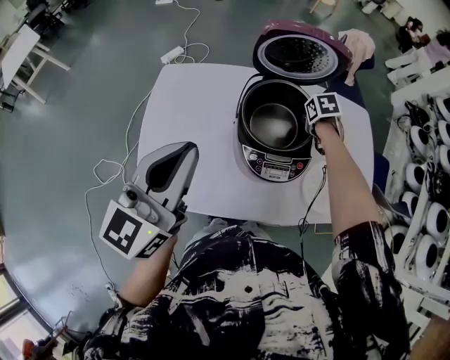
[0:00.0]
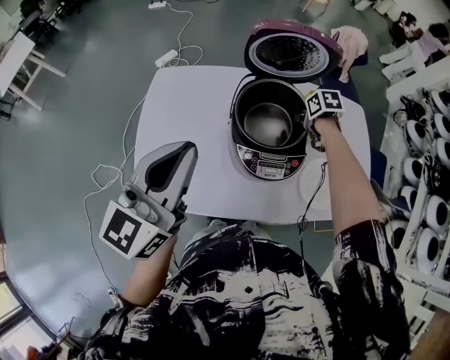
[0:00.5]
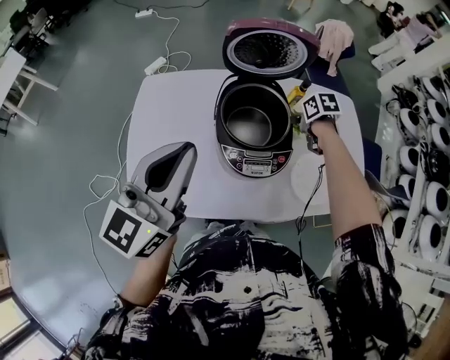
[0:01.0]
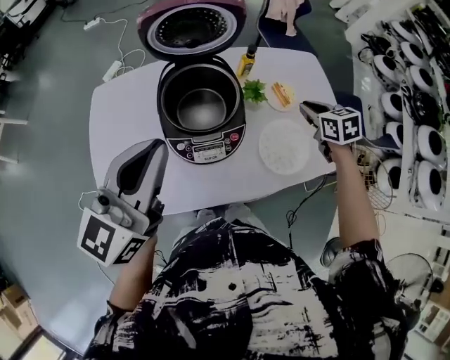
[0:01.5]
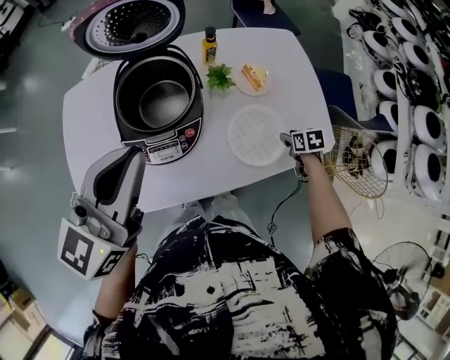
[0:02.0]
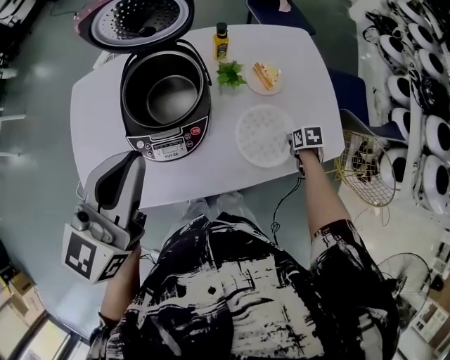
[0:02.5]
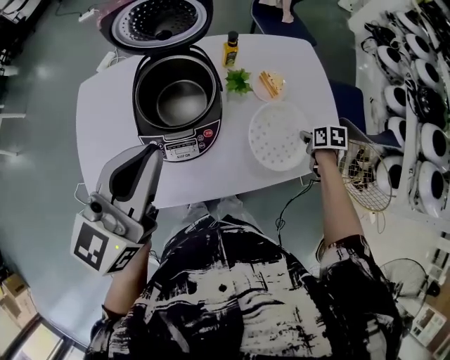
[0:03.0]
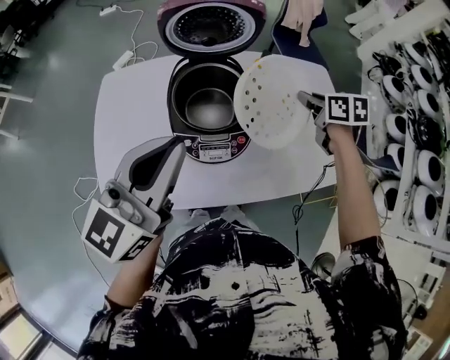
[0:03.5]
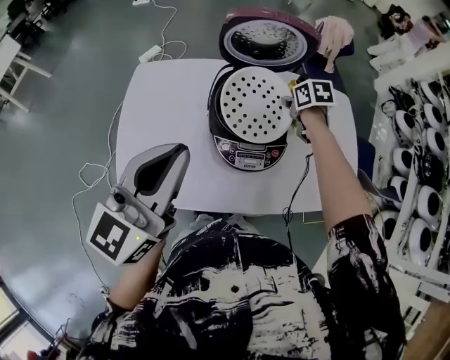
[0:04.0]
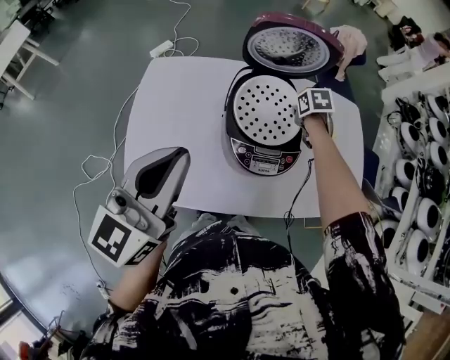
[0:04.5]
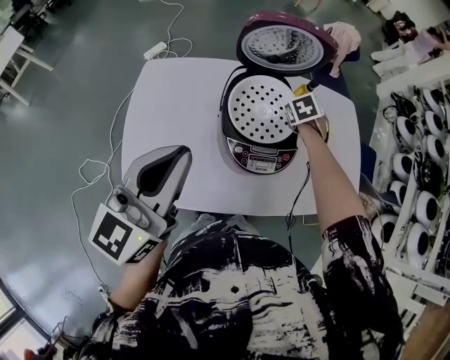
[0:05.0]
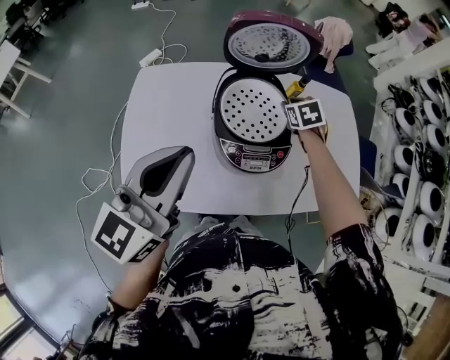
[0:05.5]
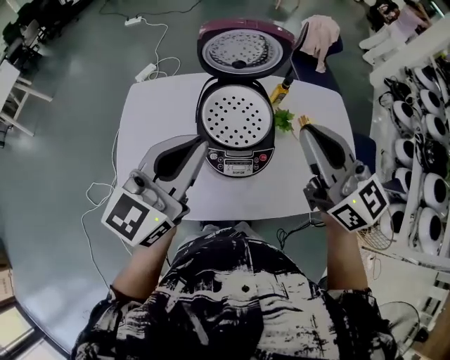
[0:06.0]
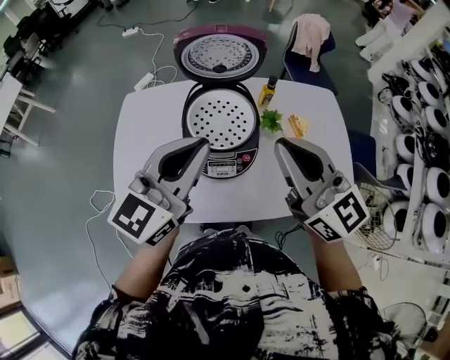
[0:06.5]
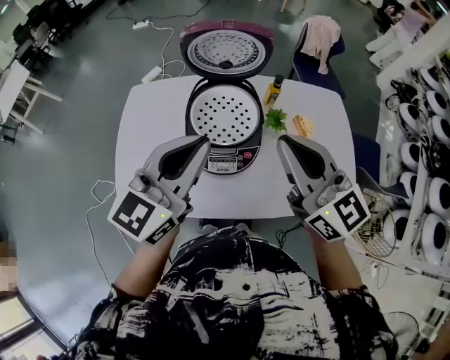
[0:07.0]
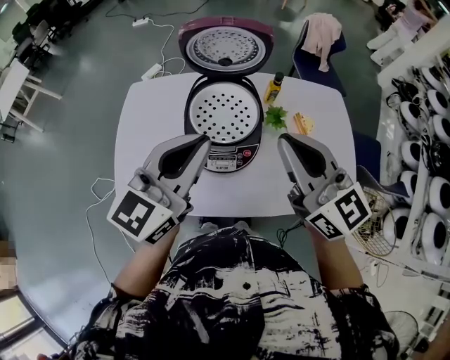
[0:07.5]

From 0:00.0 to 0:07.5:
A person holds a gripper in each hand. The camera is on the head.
From 0:00.0 to 0:02.0: The left gripper moves about 25 cm, and changes its angle by some 20 degrees. The right gripper shifts by approximately 40 cm, and turns by approximately 20 degrees.
From 0:02.0 to 0:04.0: The right gripper moves to the left, forward and upward, roughly 40 cm. Meanwhile the left gripper heads to the left, covering some 20 cm.
From 0:04.0 to 0:05.5: The right gripper swivels roughly 20 degrees.
From 0:05.5 to 0:07.5: The left gripper travels to the right by some 15 cm; the right gripper goes about 35 cm upward and backward, and tips its fingers upward by approximately 60 degrees.

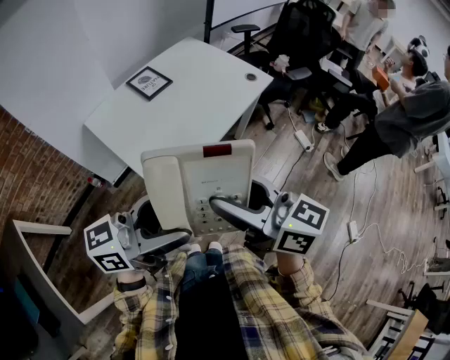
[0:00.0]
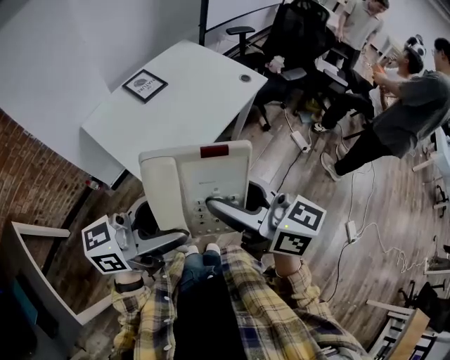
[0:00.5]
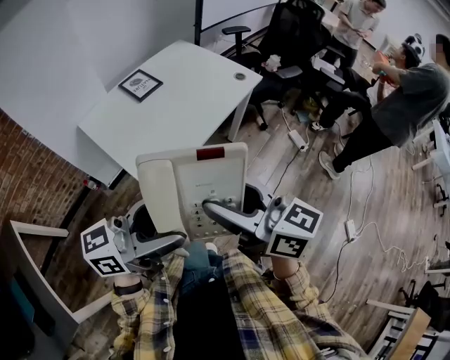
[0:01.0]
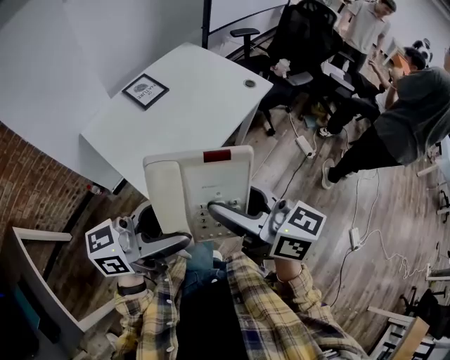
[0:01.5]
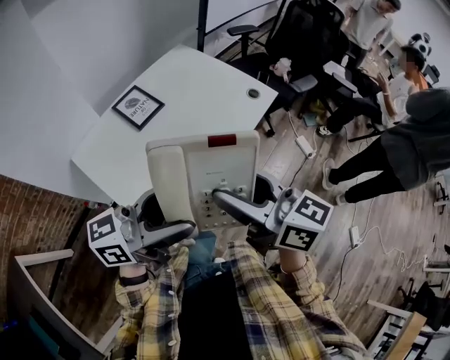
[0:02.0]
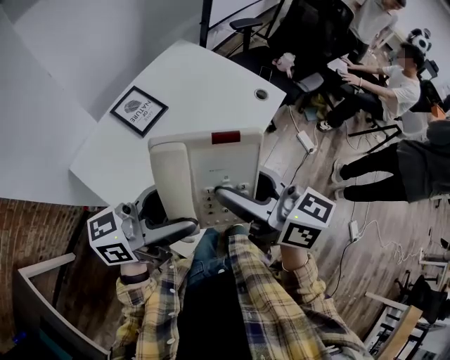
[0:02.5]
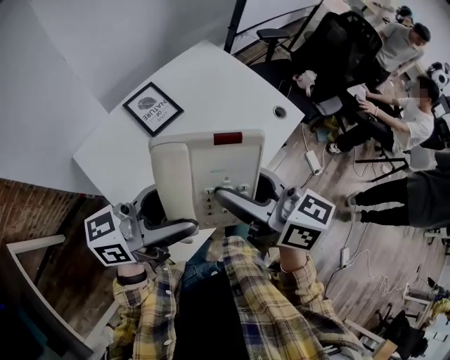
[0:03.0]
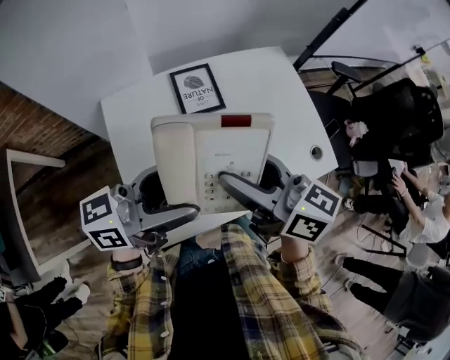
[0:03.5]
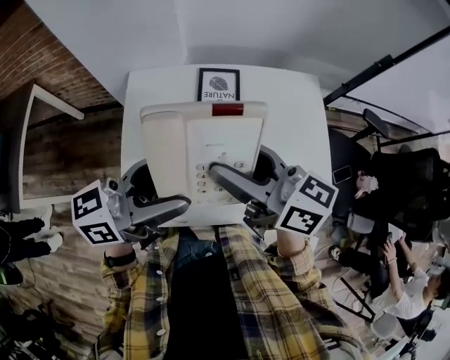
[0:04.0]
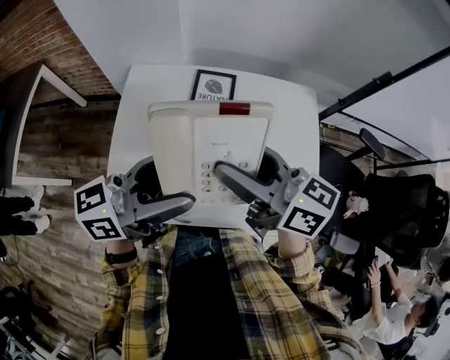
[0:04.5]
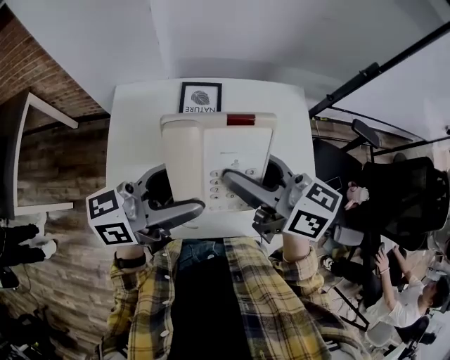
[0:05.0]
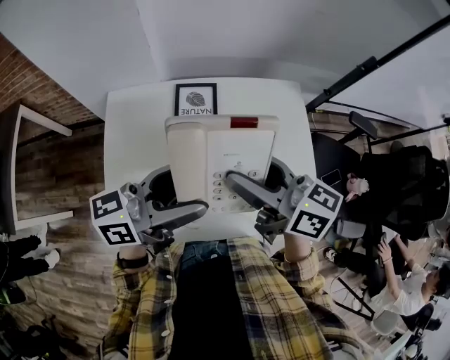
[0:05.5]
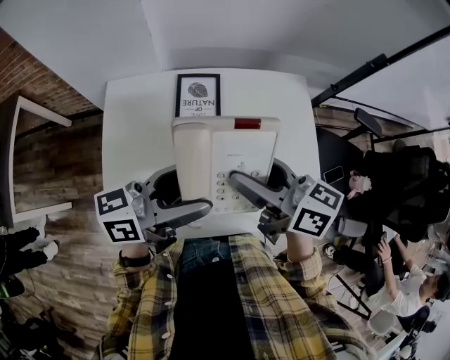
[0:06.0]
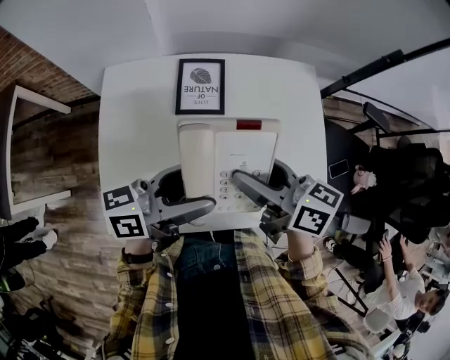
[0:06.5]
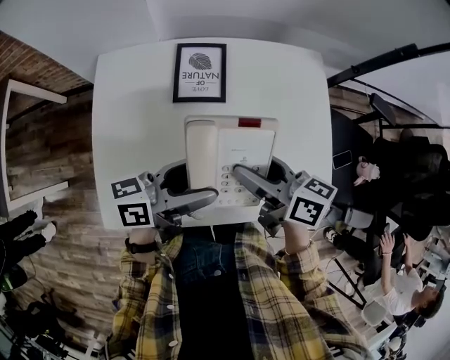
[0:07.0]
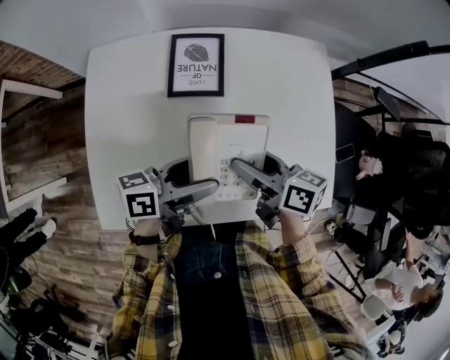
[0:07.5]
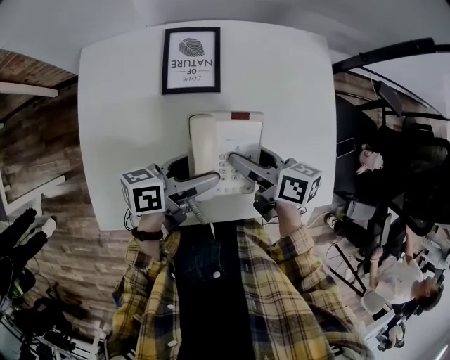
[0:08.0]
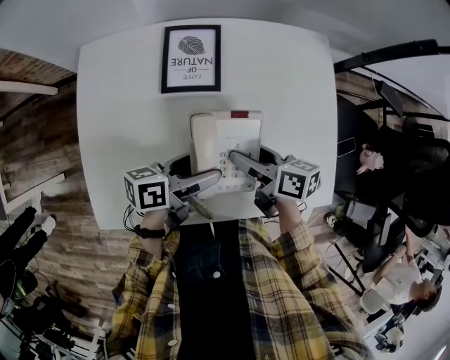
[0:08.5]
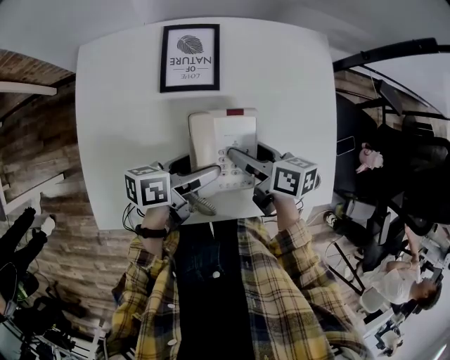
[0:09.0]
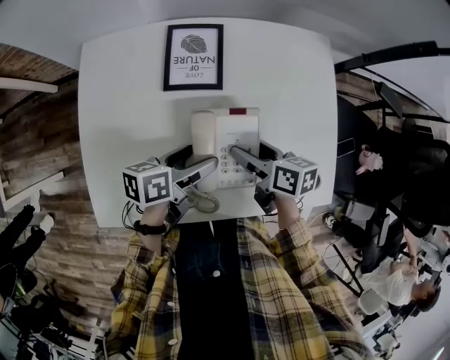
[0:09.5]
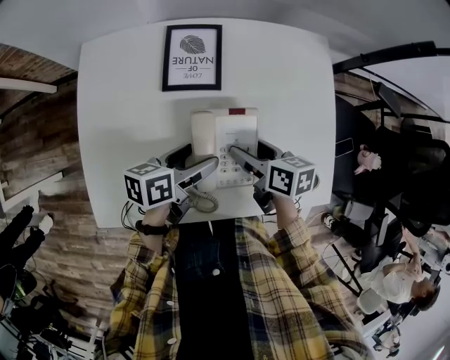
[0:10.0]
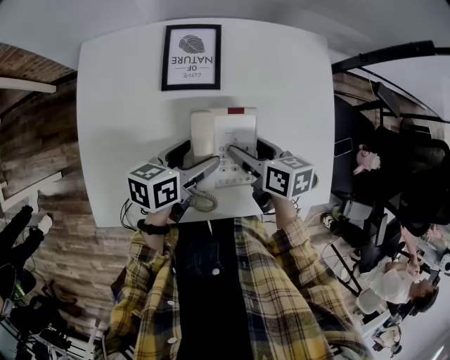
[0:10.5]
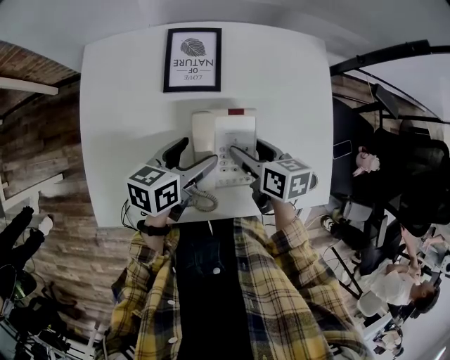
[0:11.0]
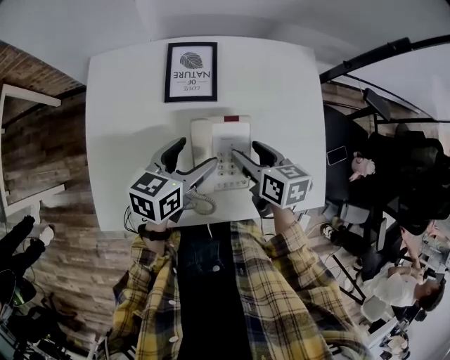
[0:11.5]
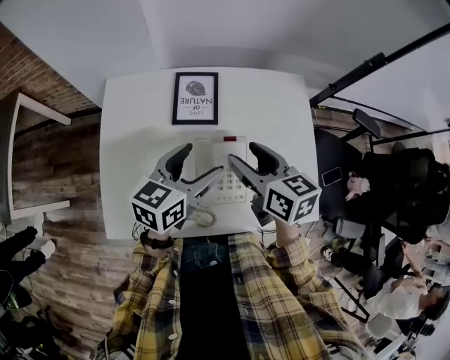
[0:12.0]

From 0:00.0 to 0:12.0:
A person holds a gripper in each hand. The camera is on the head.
From 0:00.0 to 0:02.0: The grippers both shift forward by about 20 cm.
From 0:02.0 to 0:04.0: The right gripper changes place by about 15 cm, and turns by about 60 degrees, while the left gripper shifts by approximately 10 cm, and swivels some 50 degrees.
From 0:04.0 to 0:06.0: Both grippers travel together to the right and downward, approximately 10 cm.
From 0:06.0 to 0:08.0: The grippers both shift downward by some 20 cm. The left gripper swivels roughly 30 degrees. Meanwhile the right gripper rotates some 20 degrees.
From 0:08.0 to 0:10.0: The grippers stay close to where they were, moving slightly.
From 0:10.0 to 0:12.0: The two grippers go about 15 cm upward. The right gripper changes its angle by roughly 30 degrees; the left gripper turns by about 40 degrees.

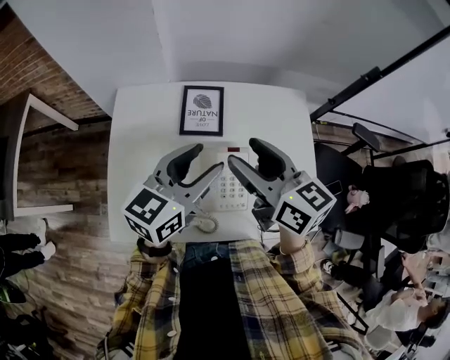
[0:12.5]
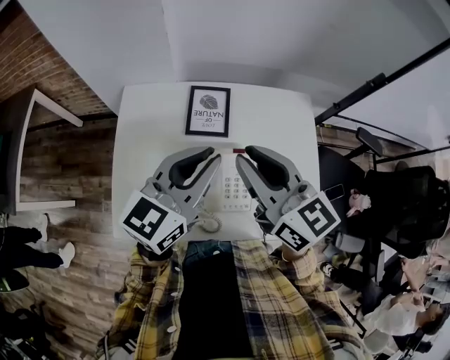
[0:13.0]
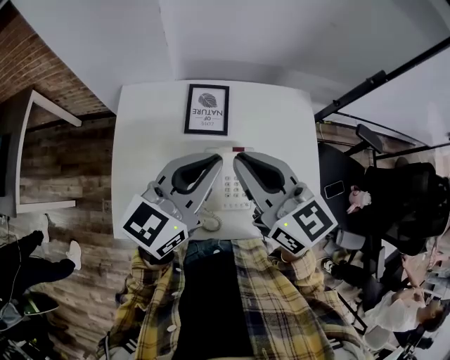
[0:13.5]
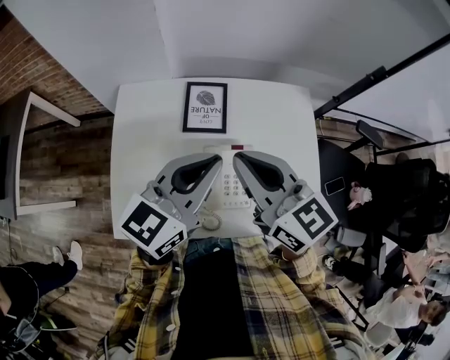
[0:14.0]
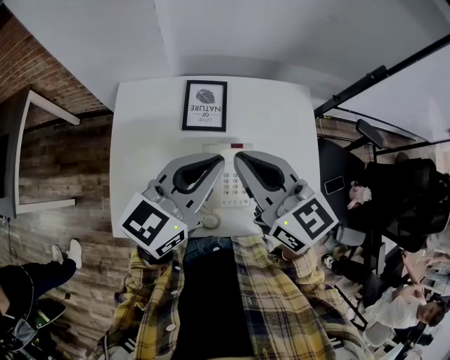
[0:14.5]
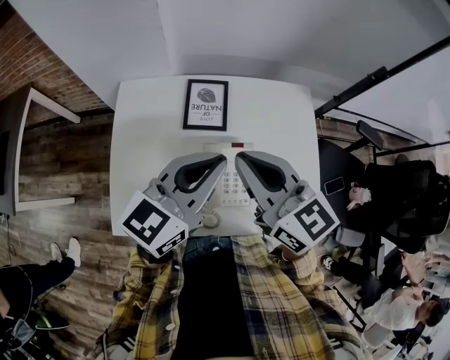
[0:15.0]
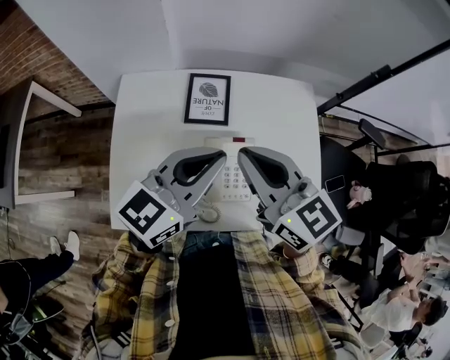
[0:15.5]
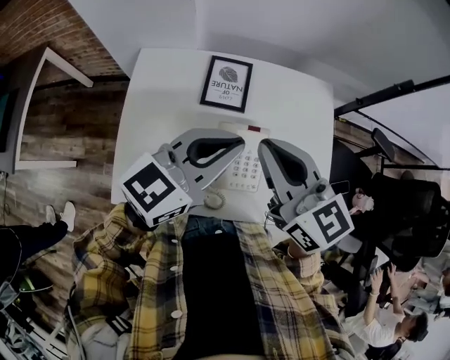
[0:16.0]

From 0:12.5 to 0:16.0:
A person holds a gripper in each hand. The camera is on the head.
From 0:12.5 to 0:14.5: The right gripper closes its fingers, while the left gripper closes up.
From 0:14.5 to 0:16.0: The grippers move only a little.

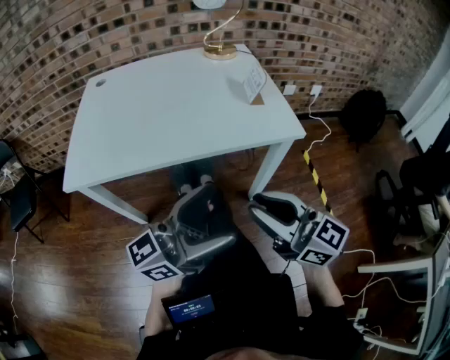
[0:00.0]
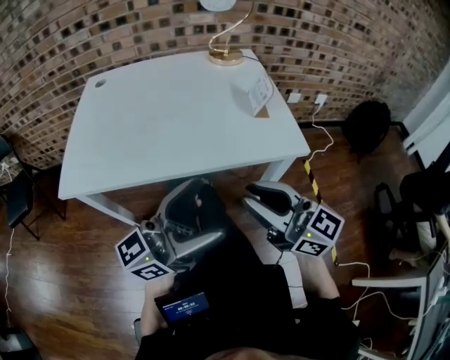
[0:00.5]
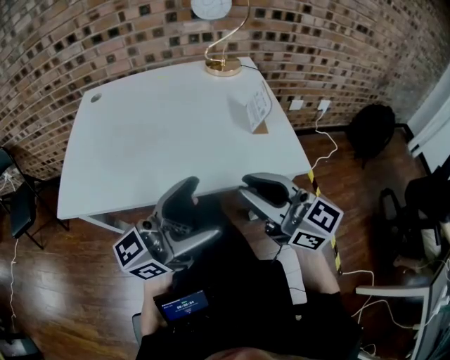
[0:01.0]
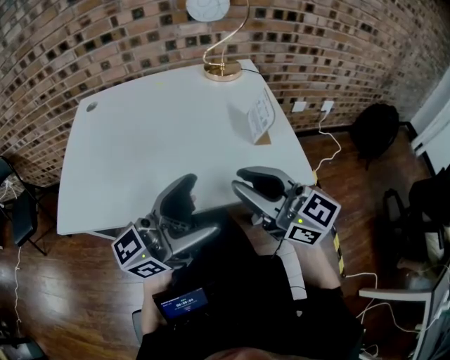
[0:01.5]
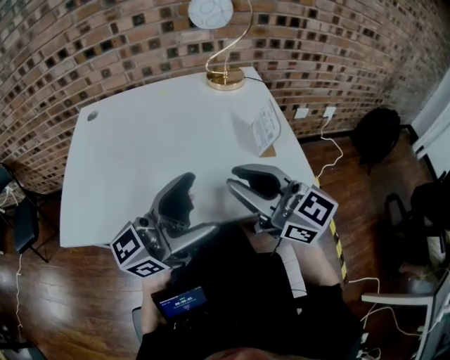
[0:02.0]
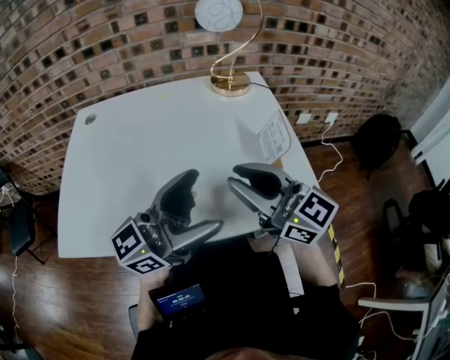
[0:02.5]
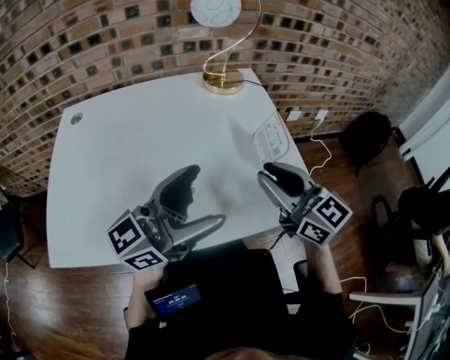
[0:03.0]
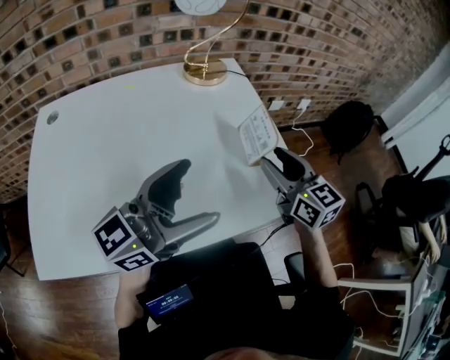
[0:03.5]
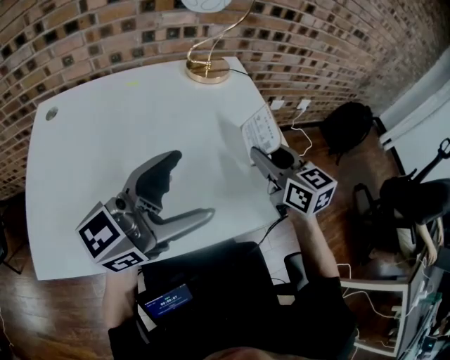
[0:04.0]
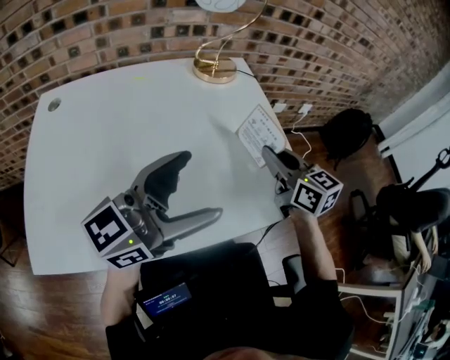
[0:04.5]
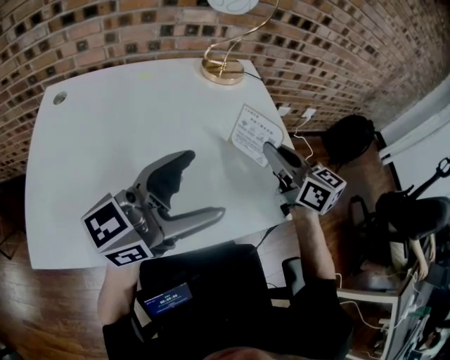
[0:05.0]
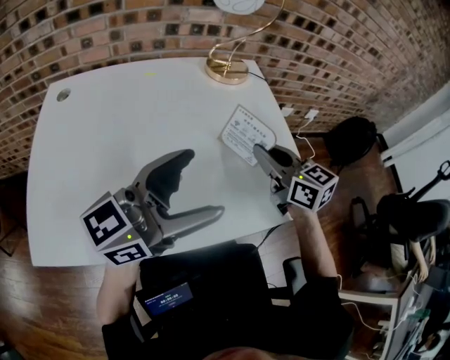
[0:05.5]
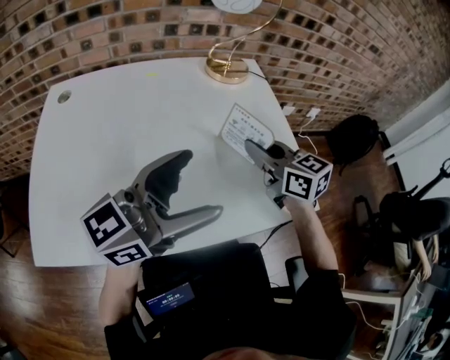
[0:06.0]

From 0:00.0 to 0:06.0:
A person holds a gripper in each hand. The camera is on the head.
From 0:00.0 to 0:02.0: Both grippers travel together forward, approximately 20 cm.
From 0:02.0 to 0:04.0: The right gripper shifts roughly 20 cm forward, downward and to the right, and rotates roughly 40 degrees. Meanwhile the left gripper moves forward, roughly 10 cm.
From 0:04.0 to 0:06.0: The right gripper is displaced to the left by approximately 5 cm, and closes its fingers.
